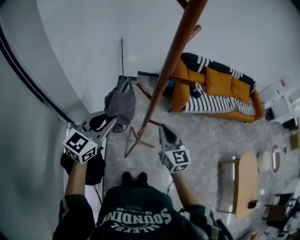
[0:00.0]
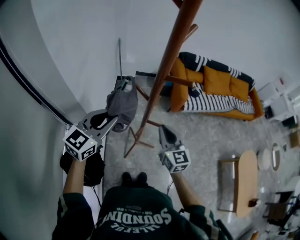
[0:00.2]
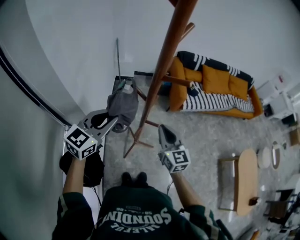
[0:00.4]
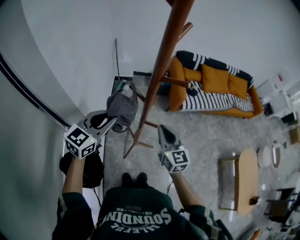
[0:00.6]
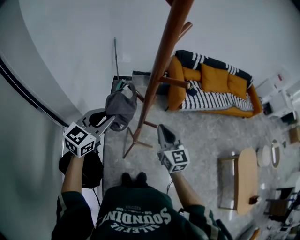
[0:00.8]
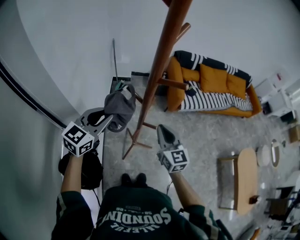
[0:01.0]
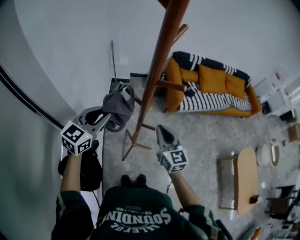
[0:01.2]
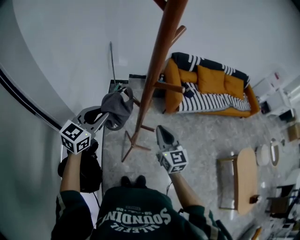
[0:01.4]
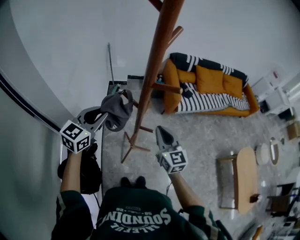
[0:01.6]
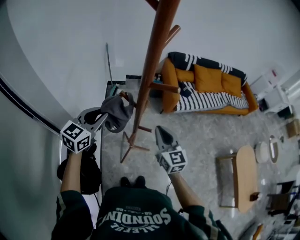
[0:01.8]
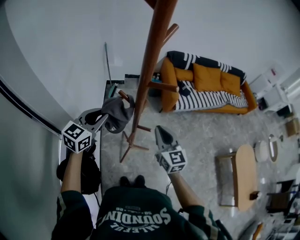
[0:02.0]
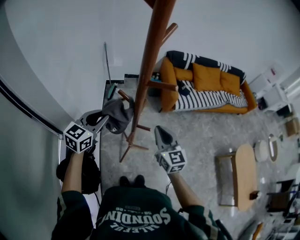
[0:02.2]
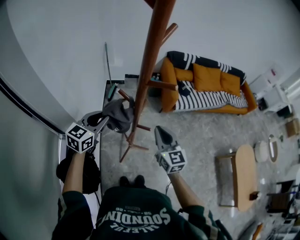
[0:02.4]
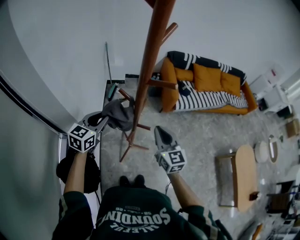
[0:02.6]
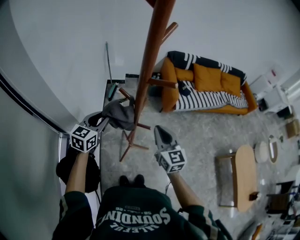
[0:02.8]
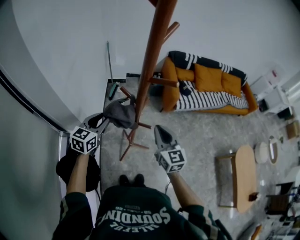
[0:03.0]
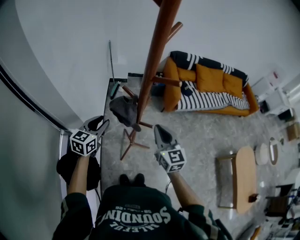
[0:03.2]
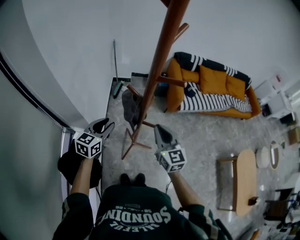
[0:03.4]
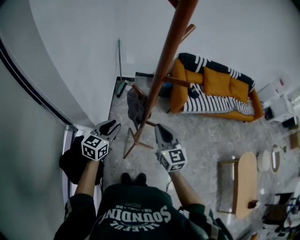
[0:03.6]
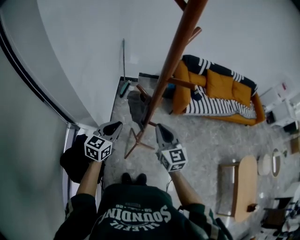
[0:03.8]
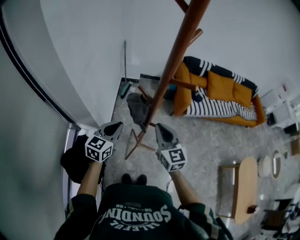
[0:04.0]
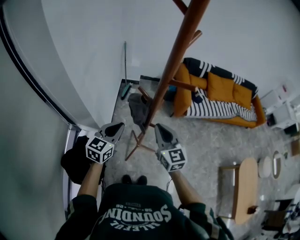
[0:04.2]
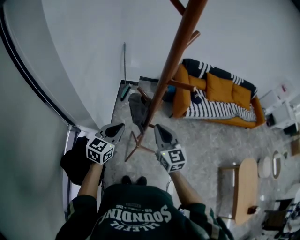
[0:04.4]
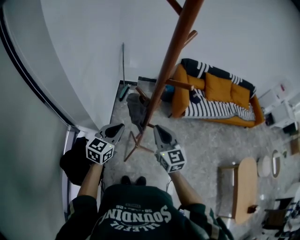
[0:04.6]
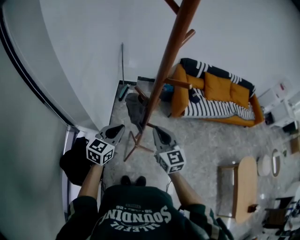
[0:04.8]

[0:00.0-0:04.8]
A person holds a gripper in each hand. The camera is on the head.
0:00.0 to 0:01.6: The left gripper is displaced forward by some 10 cm.
0:01.6 to 0:03.2: The left gripper travels downward by approximately 10 cm.
0:03.2 to 0:04.8: The left gripper heads to the right, covering roughly 5 cm, and closes.

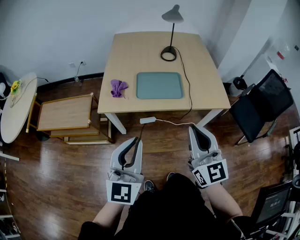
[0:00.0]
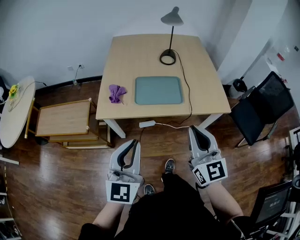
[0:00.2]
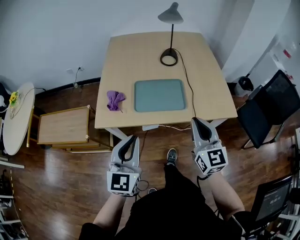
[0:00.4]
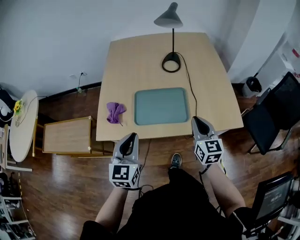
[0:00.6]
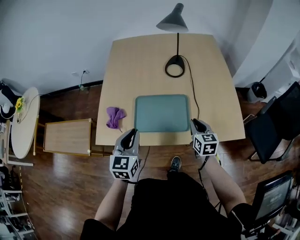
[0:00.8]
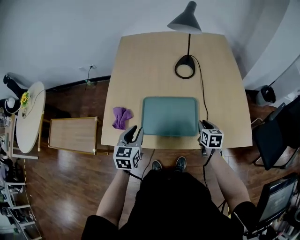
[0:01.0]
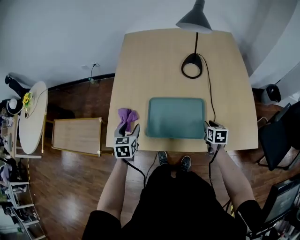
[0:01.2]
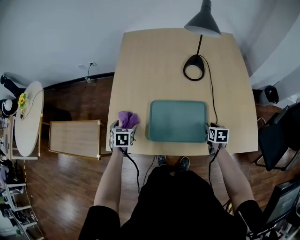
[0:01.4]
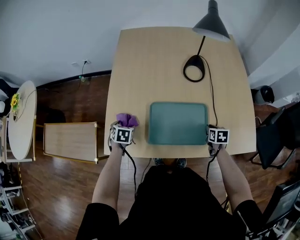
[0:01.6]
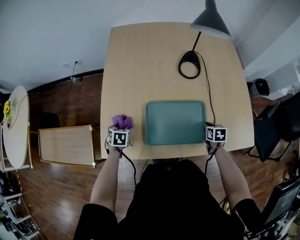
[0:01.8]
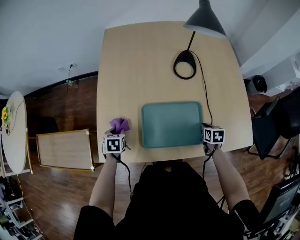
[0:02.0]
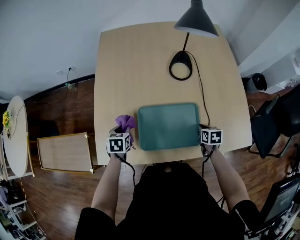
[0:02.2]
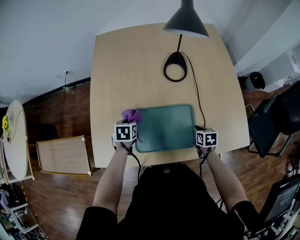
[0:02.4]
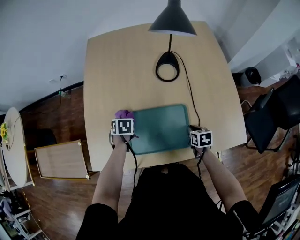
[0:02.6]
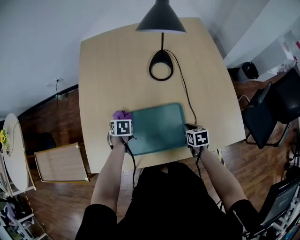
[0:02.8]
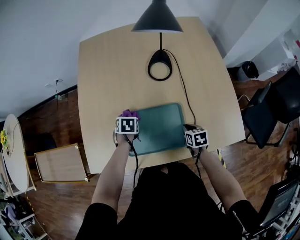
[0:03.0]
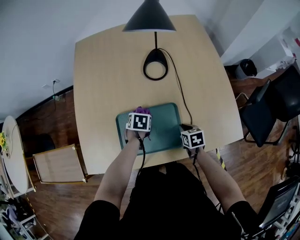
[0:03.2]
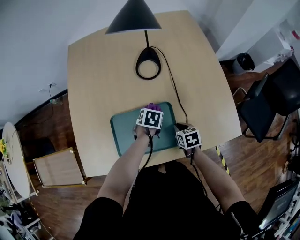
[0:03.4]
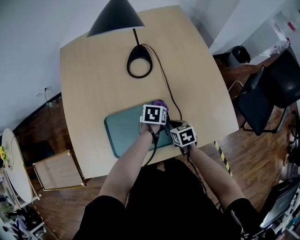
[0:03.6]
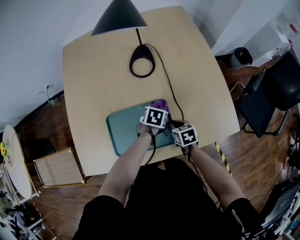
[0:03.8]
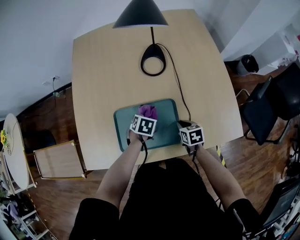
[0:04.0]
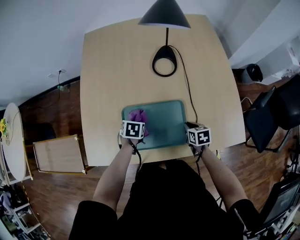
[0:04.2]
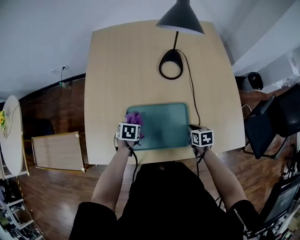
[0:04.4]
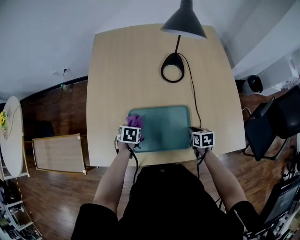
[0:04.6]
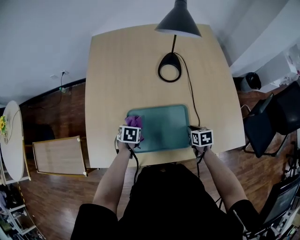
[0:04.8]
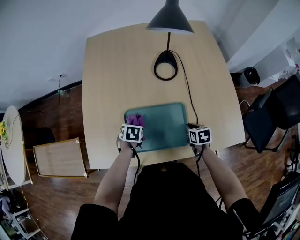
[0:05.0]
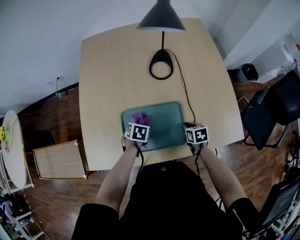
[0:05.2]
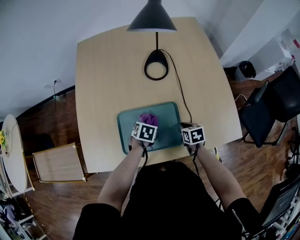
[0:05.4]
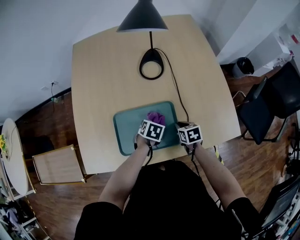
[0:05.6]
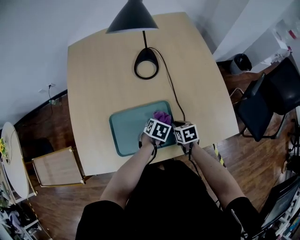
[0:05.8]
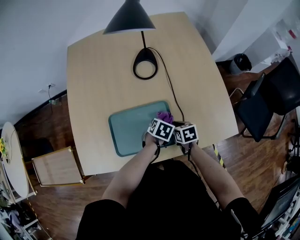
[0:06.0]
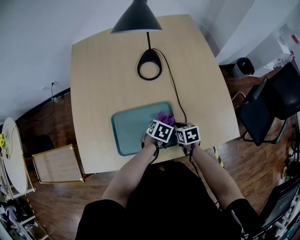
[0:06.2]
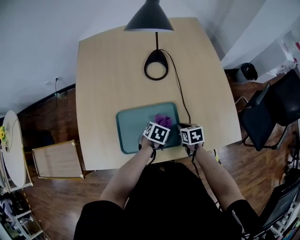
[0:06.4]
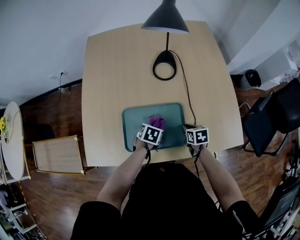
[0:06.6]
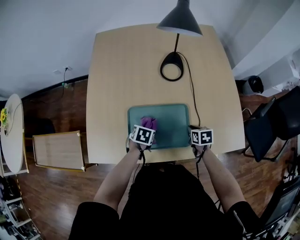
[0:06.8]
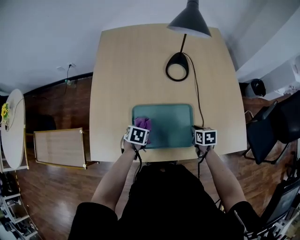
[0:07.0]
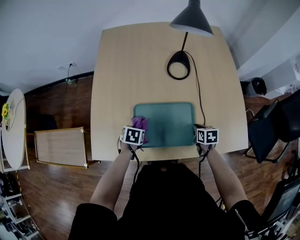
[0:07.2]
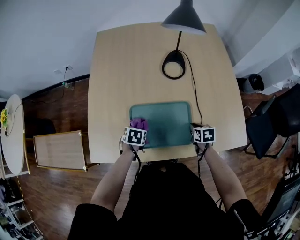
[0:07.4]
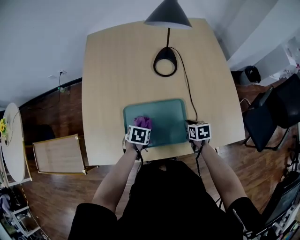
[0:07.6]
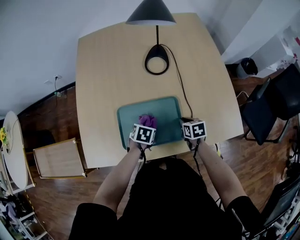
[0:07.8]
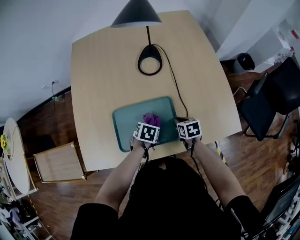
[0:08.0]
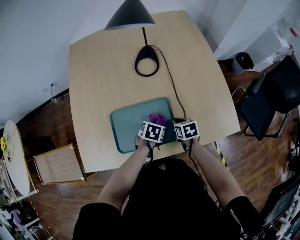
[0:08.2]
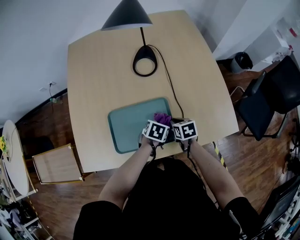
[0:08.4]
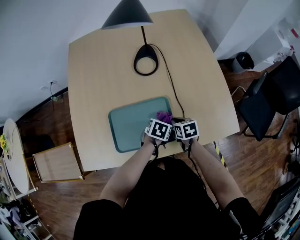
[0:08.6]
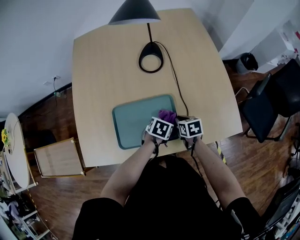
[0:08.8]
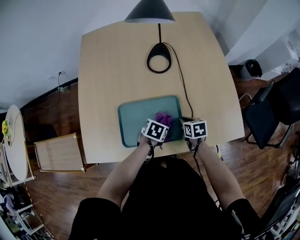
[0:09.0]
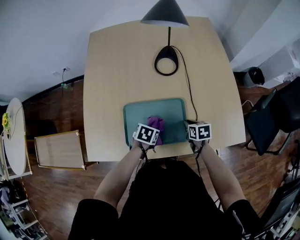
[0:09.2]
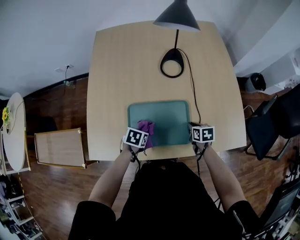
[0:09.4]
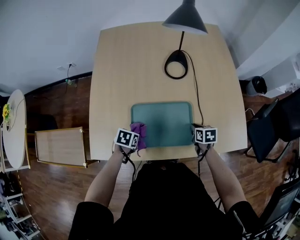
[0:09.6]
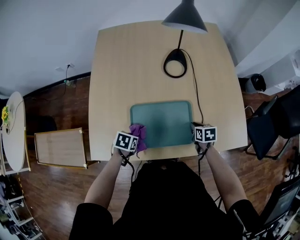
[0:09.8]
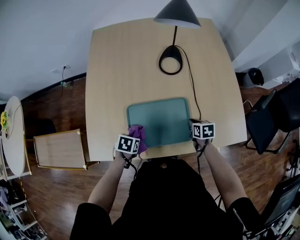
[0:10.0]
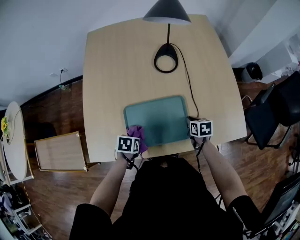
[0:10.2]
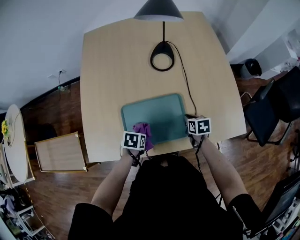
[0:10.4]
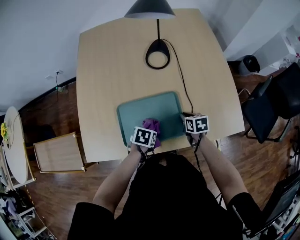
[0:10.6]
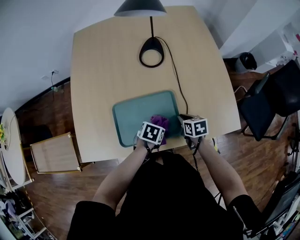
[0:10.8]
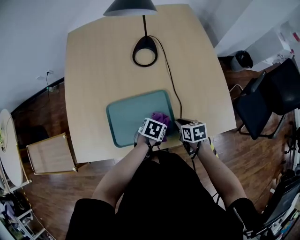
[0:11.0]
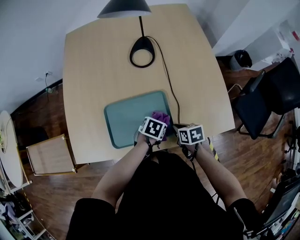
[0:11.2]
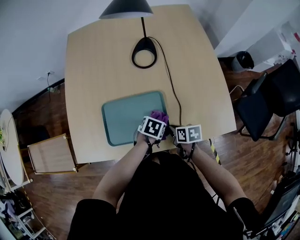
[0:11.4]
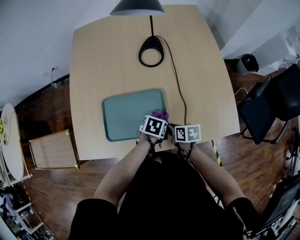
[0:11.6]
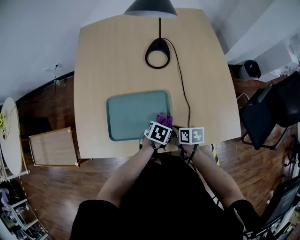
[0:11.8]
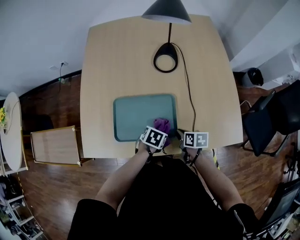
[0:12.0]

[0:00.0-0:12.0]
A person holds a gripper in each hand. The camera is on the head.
0:00.0 to 0:01.6: The right gripper shifts about 60 cm downward and forward, and tilts its fingers roughly 70 degrees downward, while the left gripper shifts about 60 cm forward and downward, angles its fingers downward, by approximately 70 degrees, and opens up.
0:01.6 to 0:03.0: The left gripper goes about 20 cm to the right, and closes its fingers.
0:03.0 to 0:04.4: The left gripper travels to the right and back again, approximately 25 cm each way.
0:04.4 to 0:06.0: The left gripper goes roughly 25 cm to the right, and swivels roughly 30 degrees.
0:06.0 to 0:07.6: The left gripper travels to the left by approximately 20 cm.
0:07.6 to 0:09.0: The left gripper shifts approximately 15 cm to the right.
0:09.0 to 0:10.4: The left gripper is displaced to the left and backward by about 15 cm.
0:10.4 to 0:12.0: The right gripper shifts by roughly 5 cm.

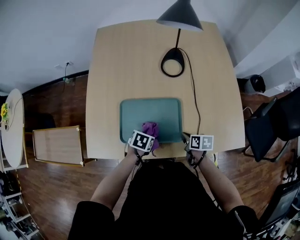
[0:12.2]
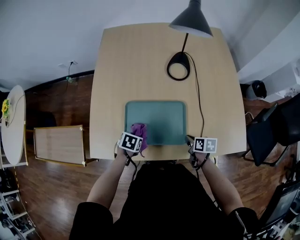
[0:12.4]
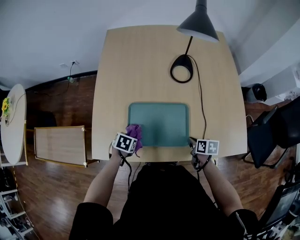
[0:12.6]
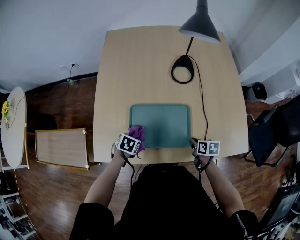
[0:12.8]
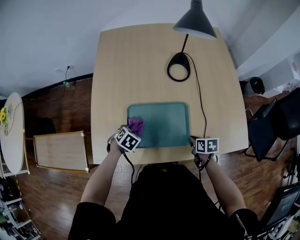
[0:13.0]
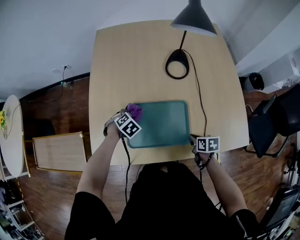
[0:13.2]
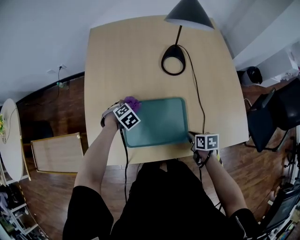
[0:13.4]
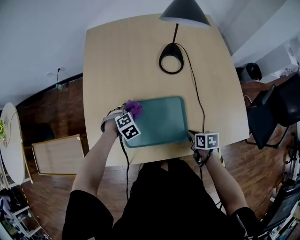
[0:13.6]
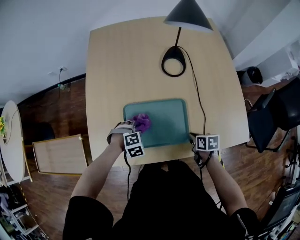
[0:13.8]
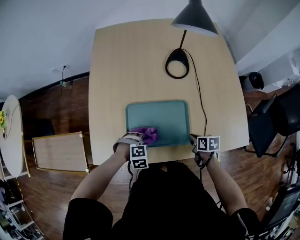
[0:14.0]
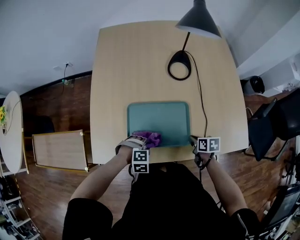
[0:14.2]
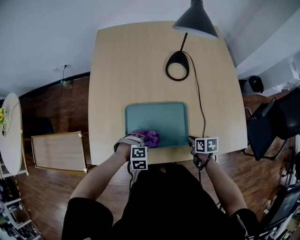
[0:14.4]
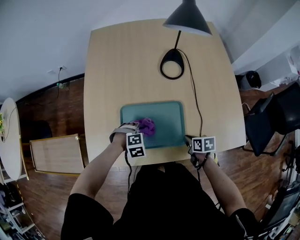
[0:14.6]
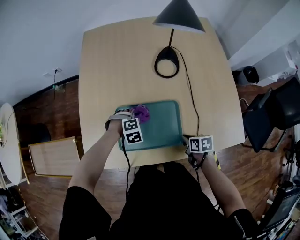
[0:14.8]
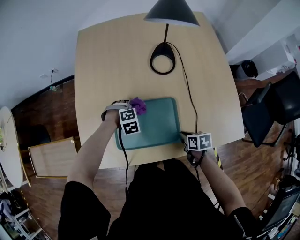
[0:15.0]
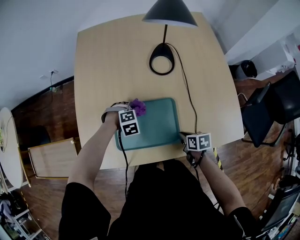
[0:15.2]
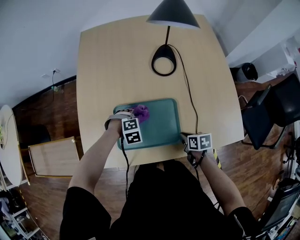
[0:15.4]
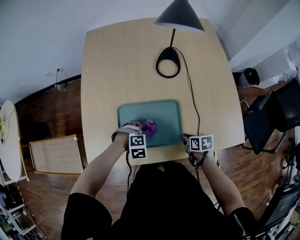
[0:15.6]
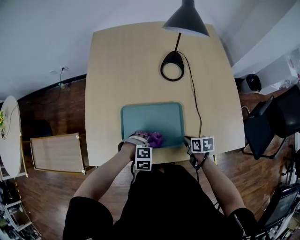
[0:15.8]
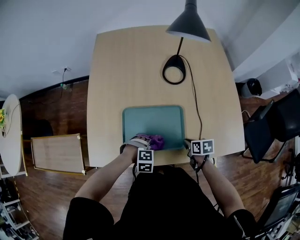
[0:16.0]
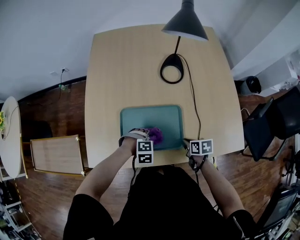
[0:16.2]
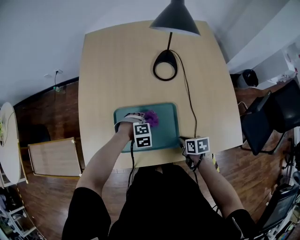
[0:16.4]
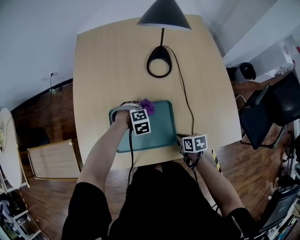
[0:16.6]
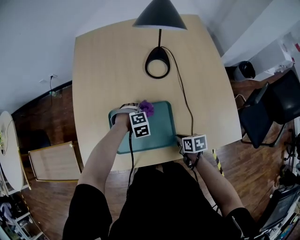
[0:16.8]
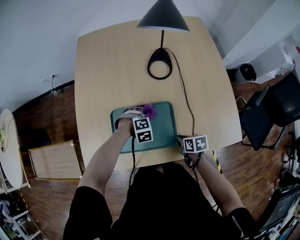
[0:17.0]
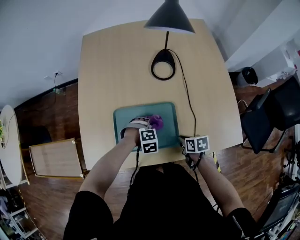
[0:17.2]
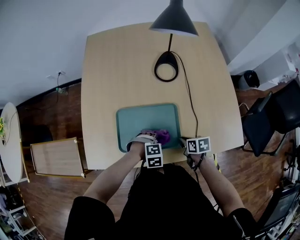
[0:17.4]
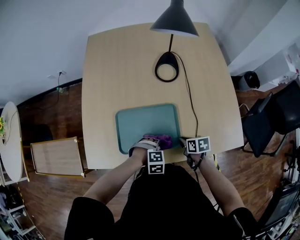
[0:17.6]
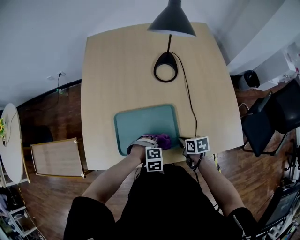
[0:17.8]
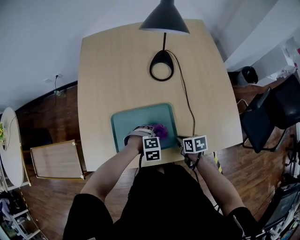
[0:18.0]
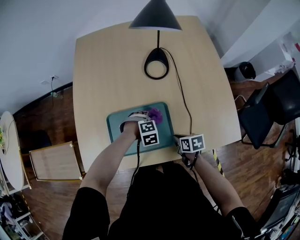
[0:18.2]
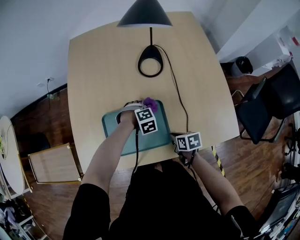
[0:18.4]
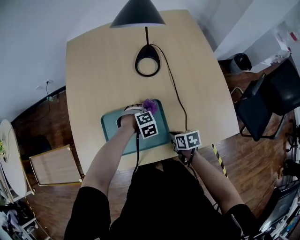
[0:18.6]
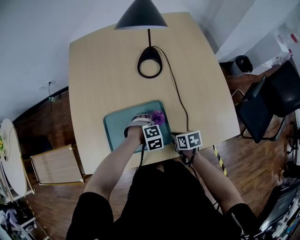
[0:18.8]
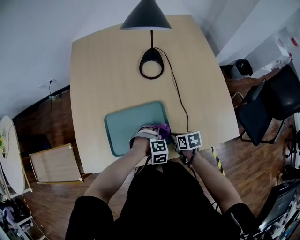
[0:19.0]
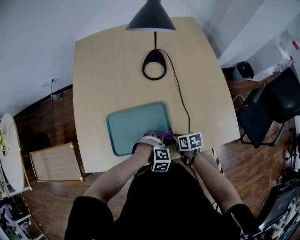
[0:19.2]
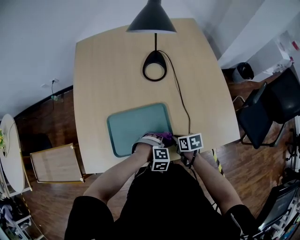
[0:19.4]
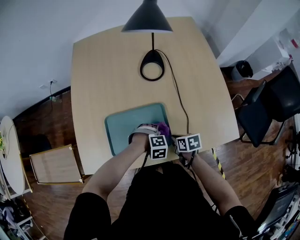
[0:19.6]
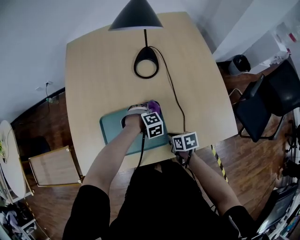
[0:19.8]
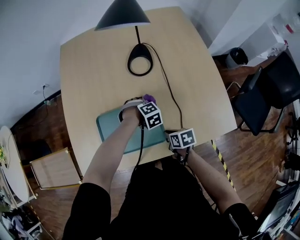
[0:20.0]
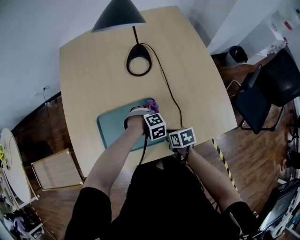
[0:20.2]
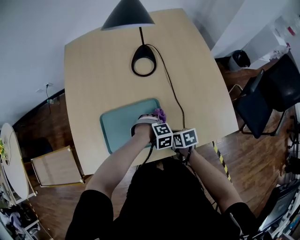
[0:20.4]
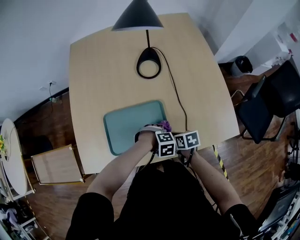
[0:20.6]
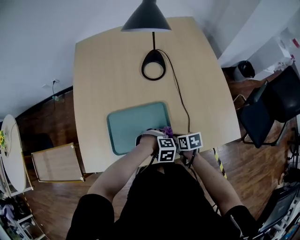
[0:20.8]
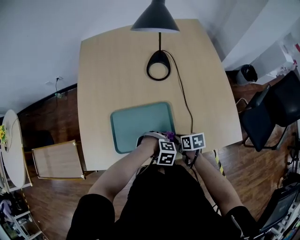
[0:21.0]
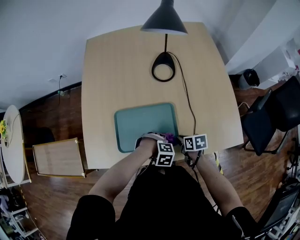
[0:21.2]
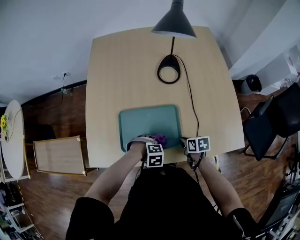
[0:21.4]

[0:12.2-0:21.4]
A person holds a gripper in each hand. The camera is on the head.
0:12.2 to 0:13.8: The left gripper twists roughly 70 degrees clockwise, seen from behind.
0:13.8 to 0:15.2: The left gripper ends up approximately 10 cm from where it was.
0:19.8 to 0:21.4: The left gripper shifts by some 20 cm.
